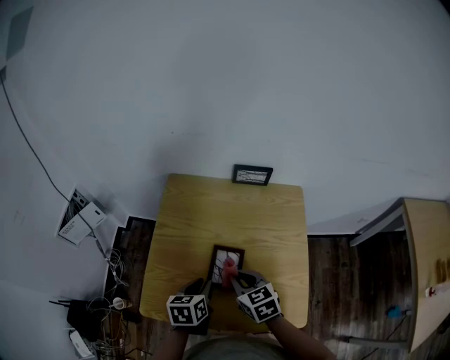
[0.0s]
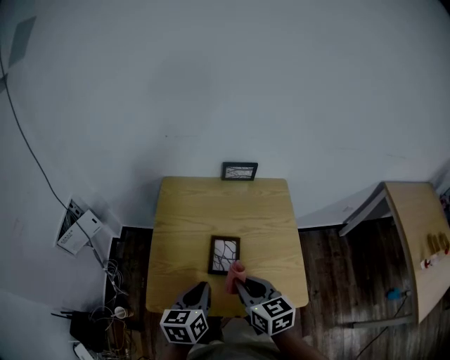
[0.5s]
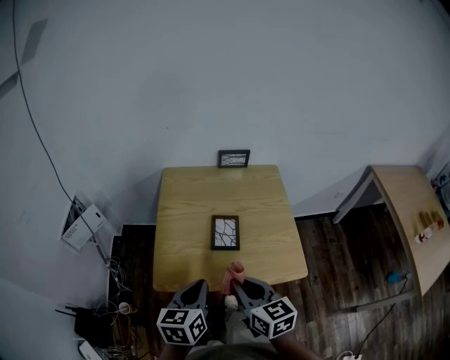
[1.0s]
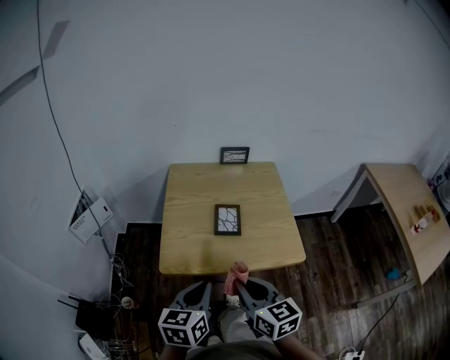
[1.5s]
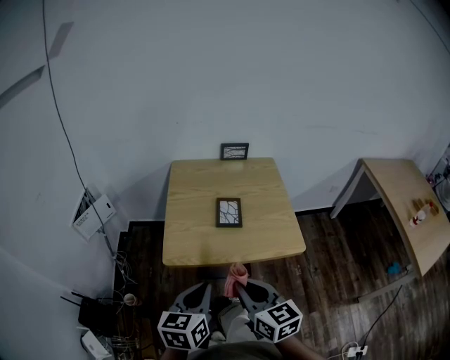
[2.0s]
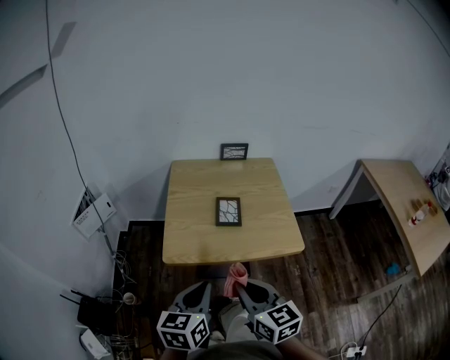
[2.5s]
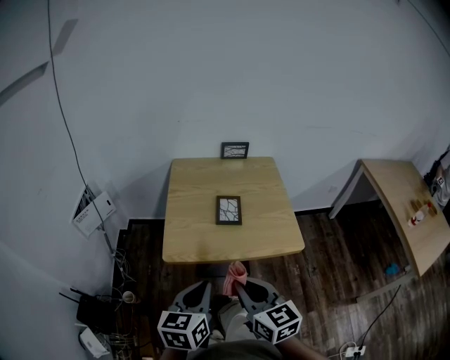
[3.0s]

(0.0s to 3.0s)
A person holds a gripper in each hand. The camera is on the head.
0.0s - 1.5s: The two grippers go some 30 cm backward and upward. The right gripper changes its angle by about 30 degrees, while the left gripper changes its angle by approximately 20 degrees, and closes up.
1.5s - 3.0s: Both grippers travel together backward, approximately 5 cm.

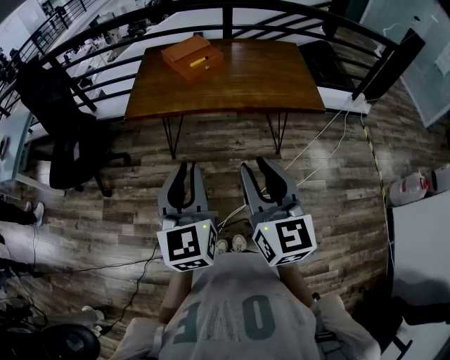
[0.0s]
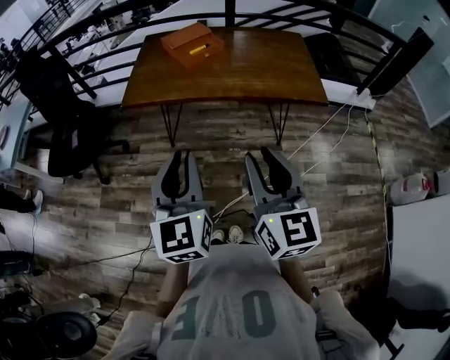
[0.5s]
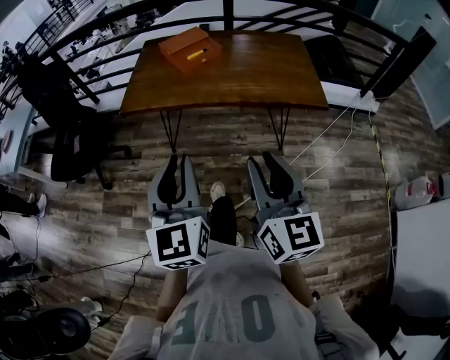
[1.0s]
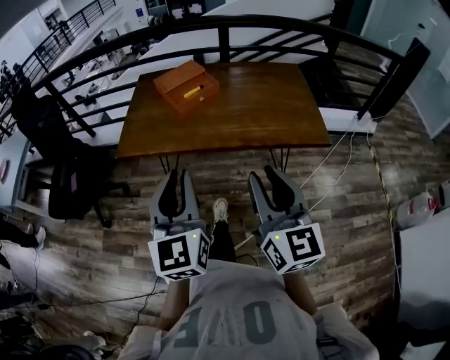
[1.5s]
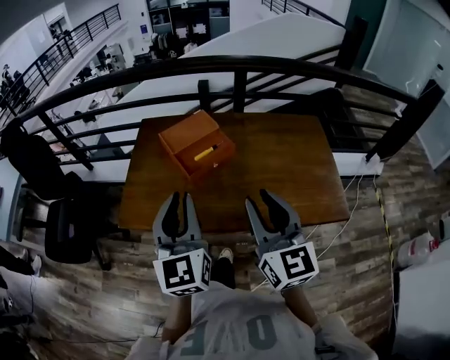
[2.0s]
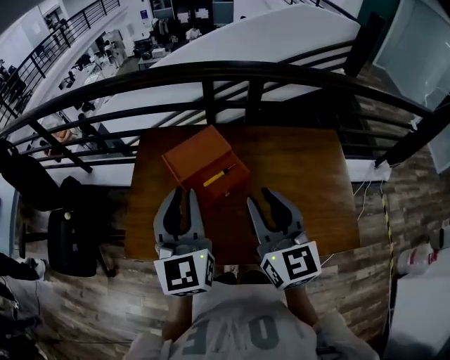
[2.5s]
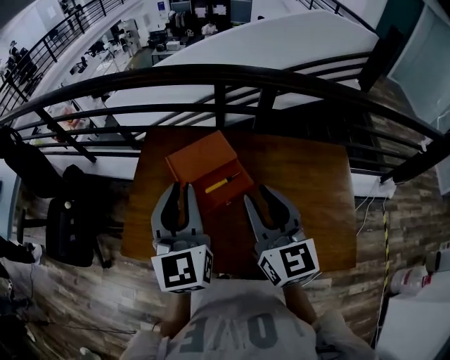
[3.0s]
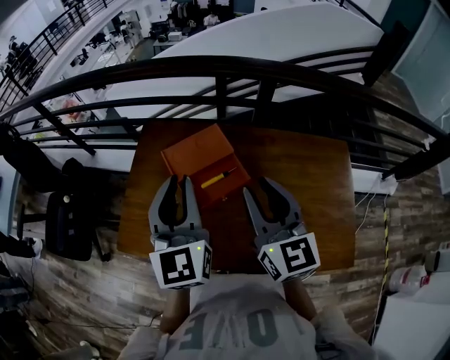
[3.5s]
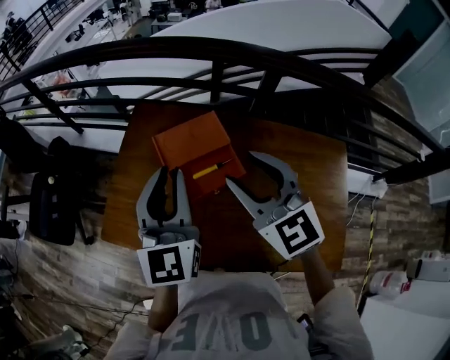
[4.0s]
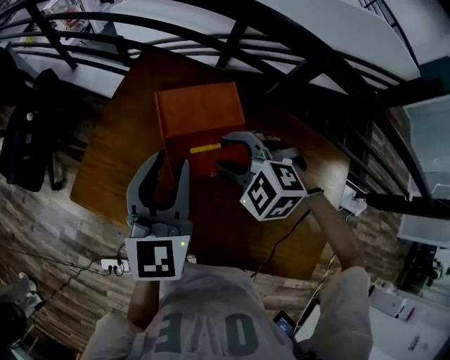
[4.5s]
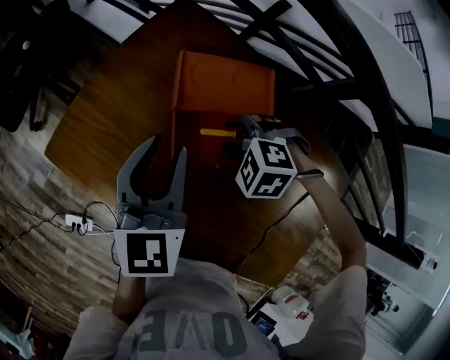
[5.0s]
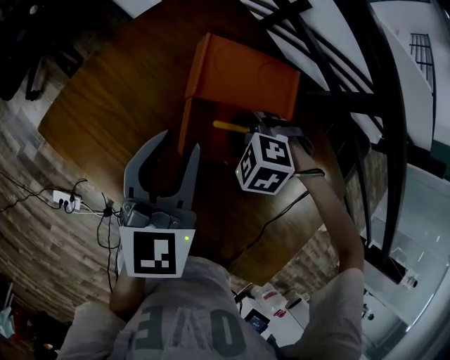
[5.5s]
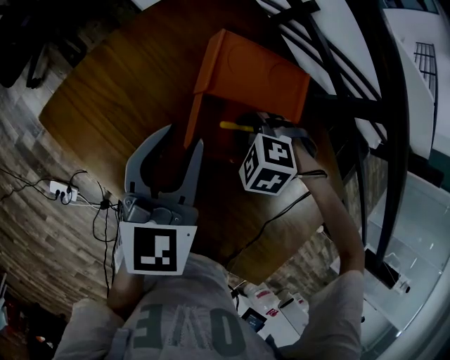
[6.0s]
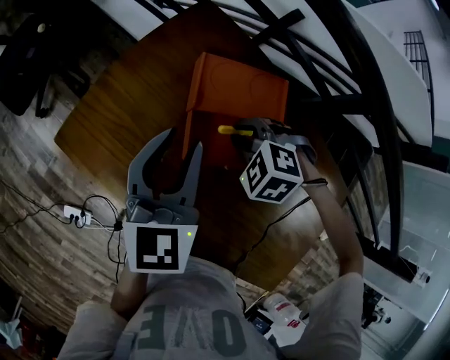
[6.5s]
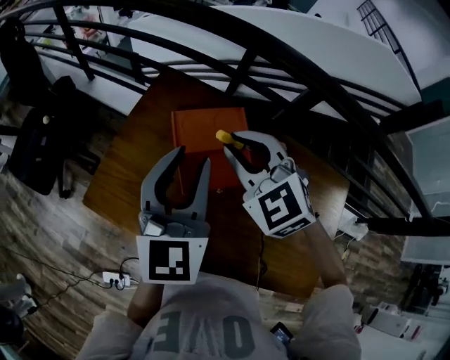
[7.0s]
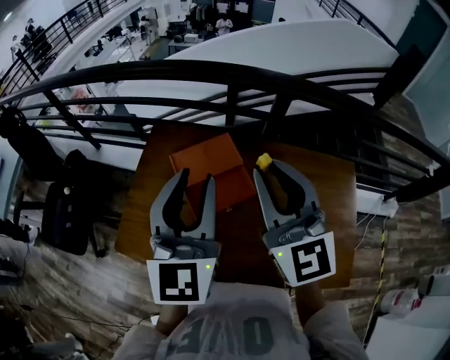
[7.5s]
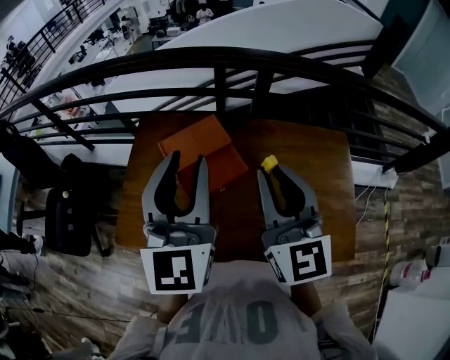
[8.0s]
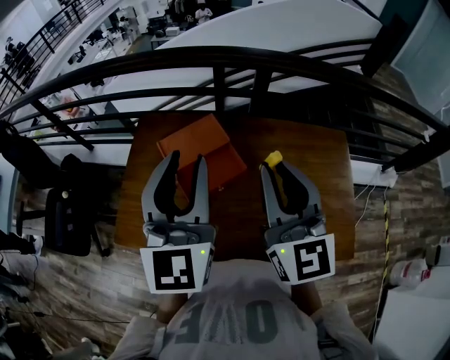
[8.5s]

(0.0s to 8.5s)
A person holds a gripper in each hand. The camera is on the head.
0.0s - 2.0s: The two grippers go about 35 cm forward.
2.0s - 4.0s: The two grippers go roughly 20 cm forward. The right gripper rotates about 40 degrees.
4.0s - 6.5s: The left gripper heads downward, covering roughly 15 cm, and turns by some 20 degrees. The right gripper travels downward by some 25 cm, points its fingers about 60 degrees further downward, and closes up.
6.5s - 8.5s: The grippers both shift upward by some 25 cm. The left gripper rotates approximately 30 degrees. Meanwhile the right gripper angles its fingers upward, by approximately 80 degrees.

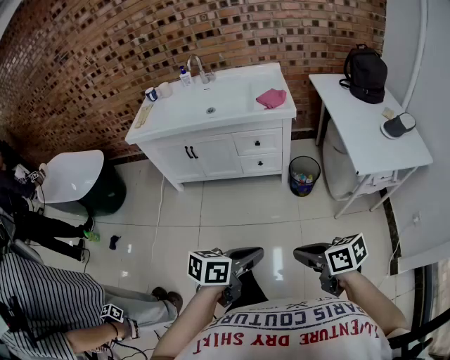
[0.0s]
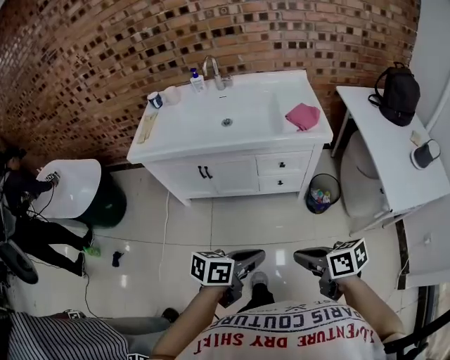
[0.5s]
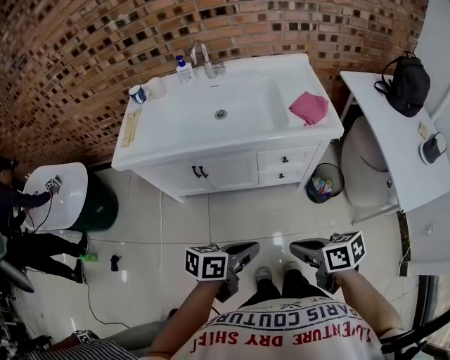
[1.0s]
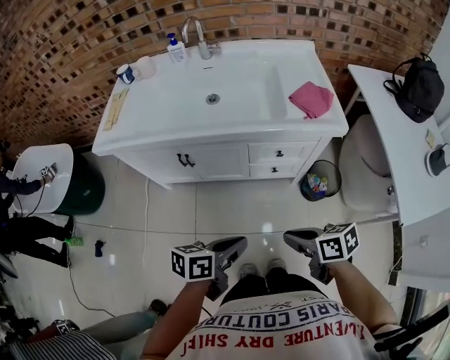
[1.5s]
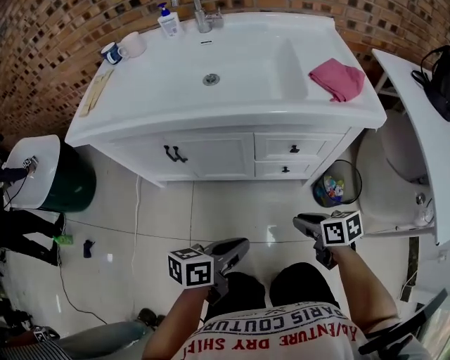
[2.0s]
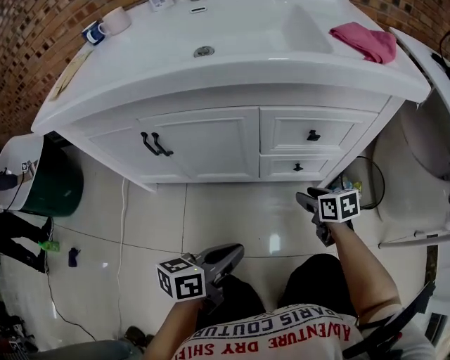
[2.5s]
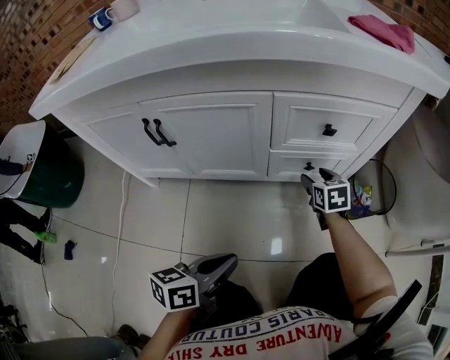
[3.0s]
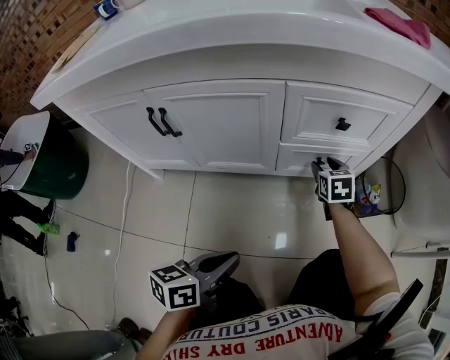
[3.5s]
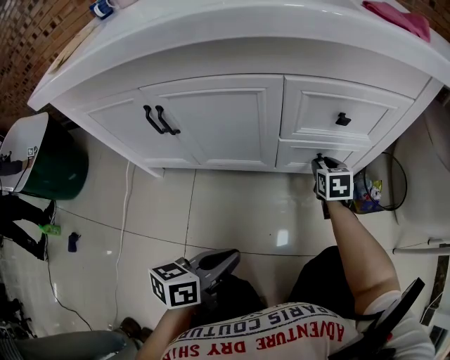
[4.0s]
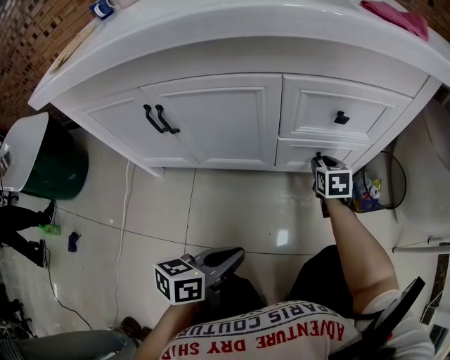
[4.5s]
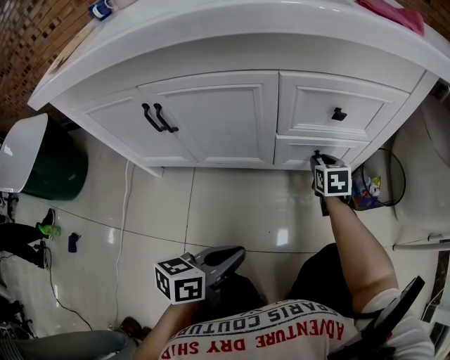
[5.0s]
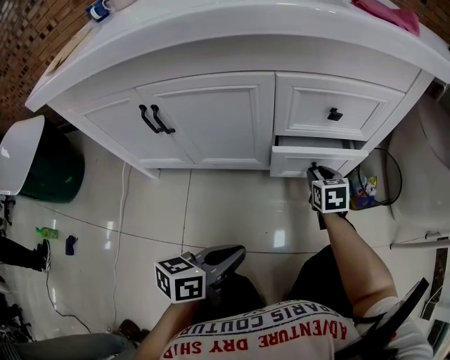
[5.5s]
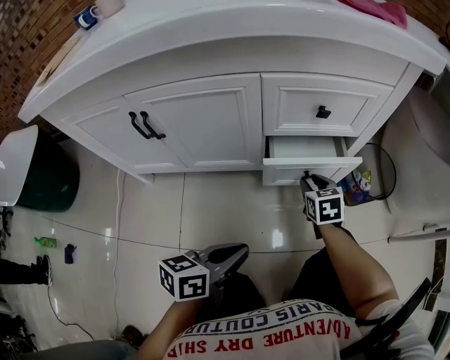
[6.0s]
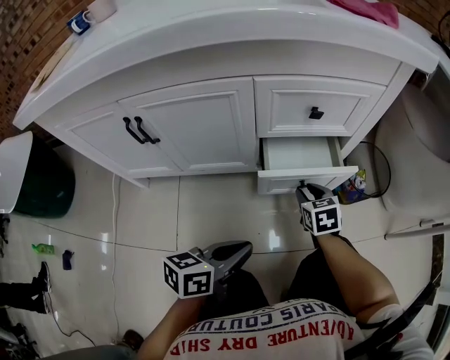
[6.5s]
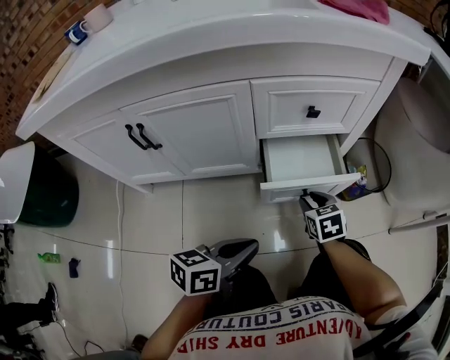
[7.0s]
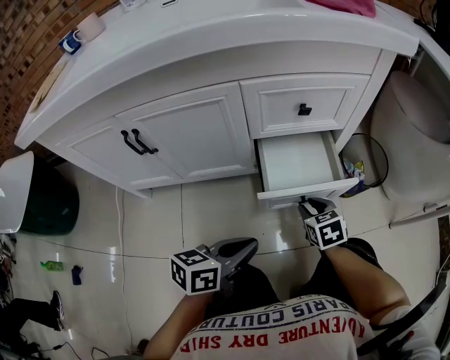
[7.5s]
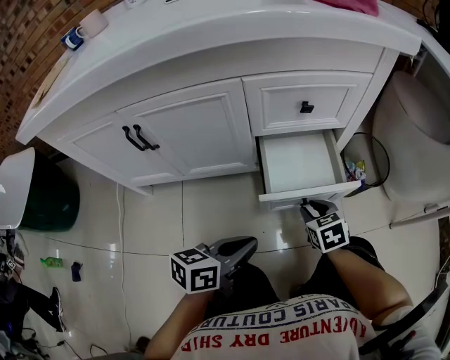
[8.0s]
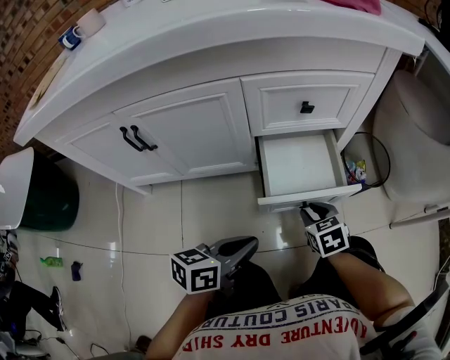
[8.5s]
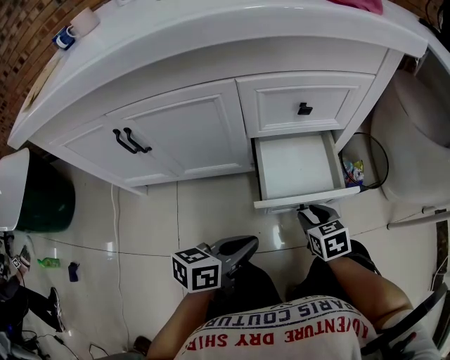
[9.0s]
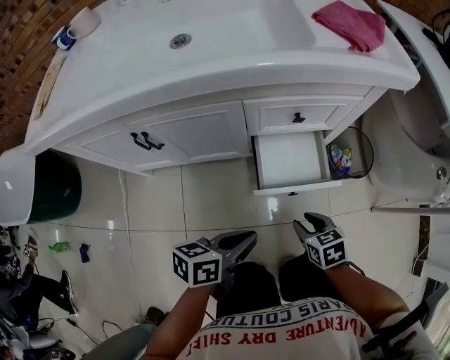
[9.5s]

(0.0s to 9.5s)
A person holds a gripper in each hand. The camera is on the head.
0.0s - 2.0s: Both grippers are carried some 50 cm.
2.0s - 4.0s: The left gripper shifts some 20 cm downward. Meanwhile the right gripper heads downward and forward, covering about 35 cm, rotates approximately 40 degrees, and opens and closes again.
4.0s - 5.5s: The grippers make only small movements.
5.5s - 7.5s: The right gripper travels backward by approximately 10 cm.
7.5s - 9.5s: The right gripper moves upward and backward, about 15 cm; the left gripper heads upward, covering roughly 10 cm.

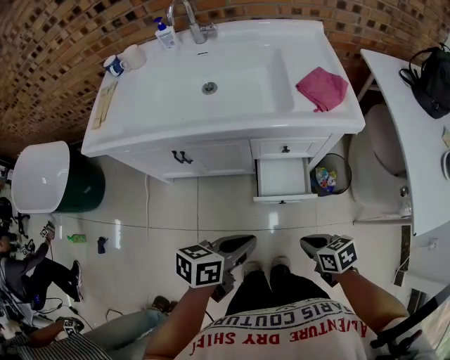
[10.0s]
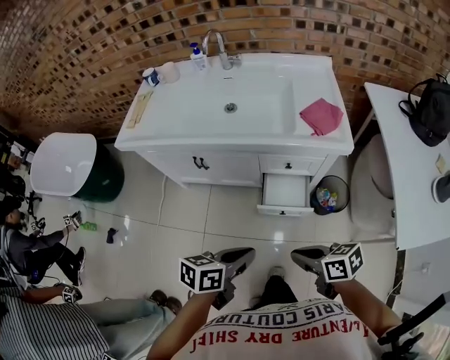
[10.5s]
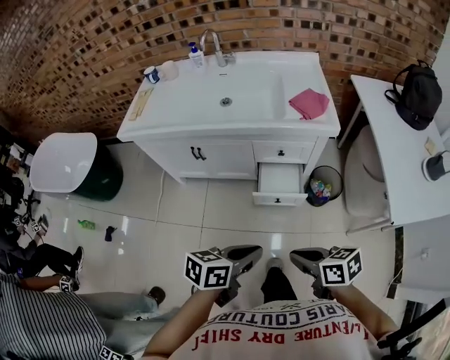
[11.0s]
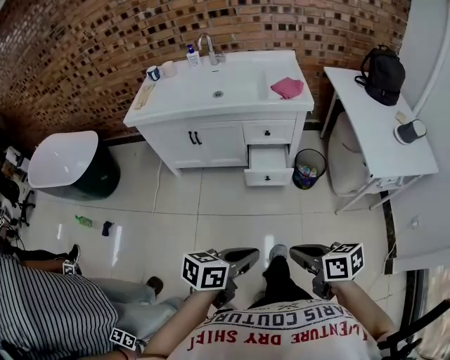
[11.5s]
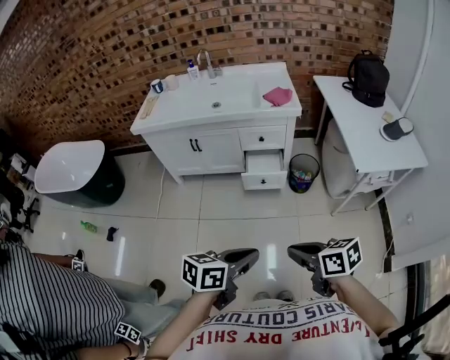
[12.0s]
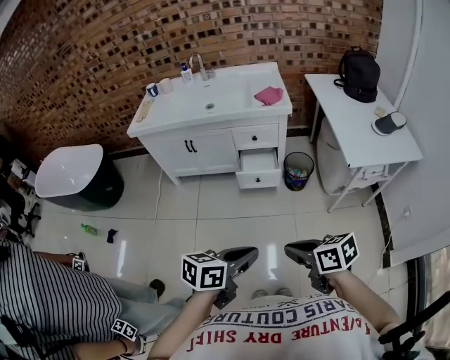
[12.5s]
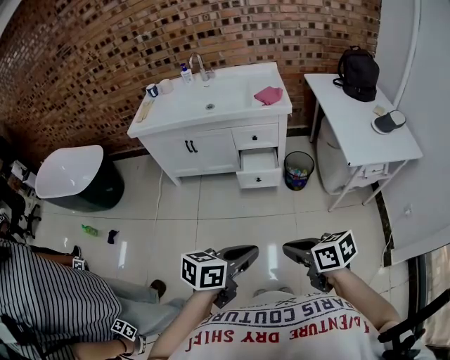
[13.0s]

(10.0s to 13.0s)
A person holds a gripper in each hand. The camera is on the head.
10.0s - 11.5s: The right gripper changes place by approximately 40 cm. The left gripper changes place by roughly 40 cm.
11.5s - 13.0s: The right gripper is displaced backward by about 10 cm. The left gripper goes approximately 10 cm backward and upward.

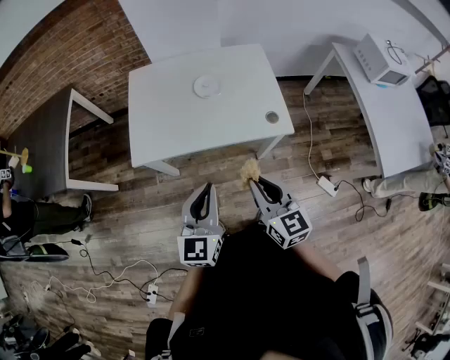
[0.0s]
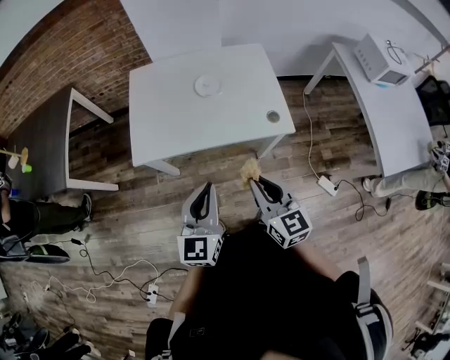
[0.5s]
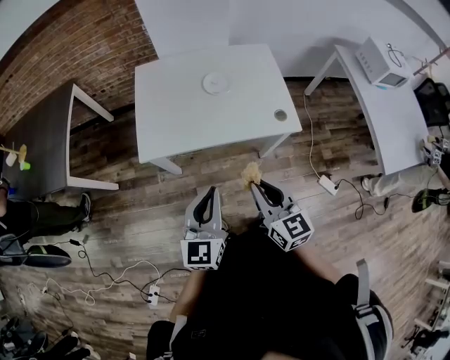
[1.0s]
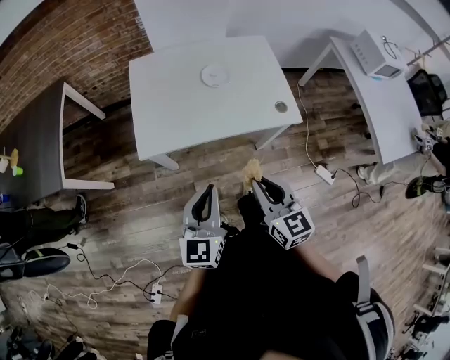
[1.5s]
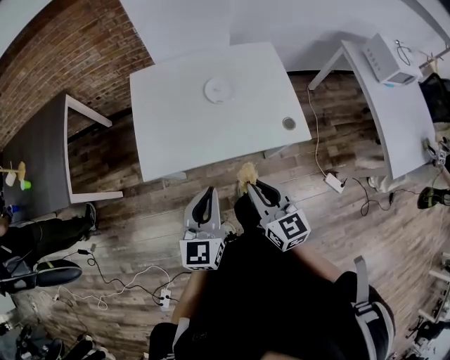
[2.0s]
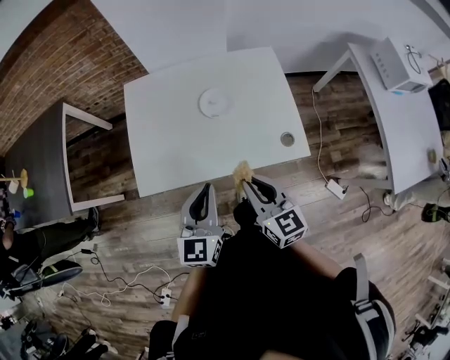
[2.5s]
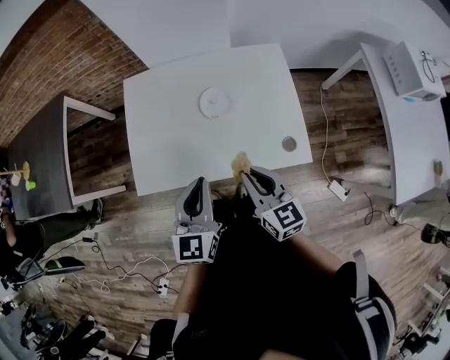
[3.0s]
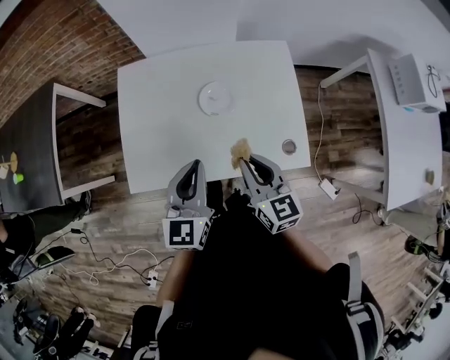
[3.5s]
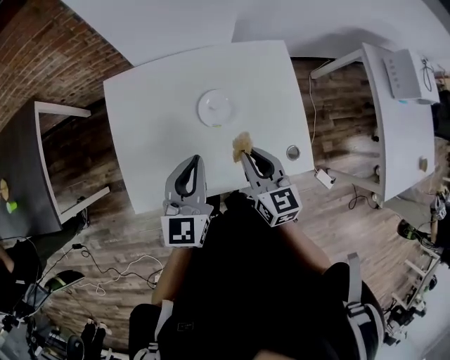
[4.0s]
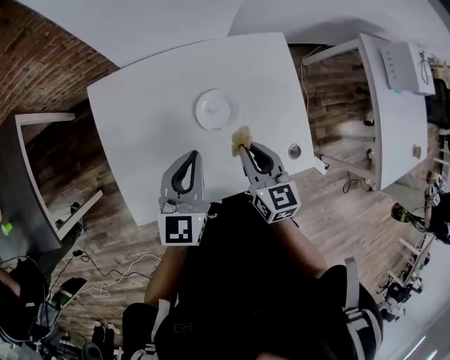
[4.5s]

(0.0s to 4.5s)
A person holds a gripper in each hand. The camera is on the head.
0.0s - 2.0s: The right gripper heads to the left and forward, covering about 10 cm; the left gripper heads forward and to the left, covering roughly 10 cm.
2.0s - 4.5s: The grippers both shift forward by about 35 cm.
